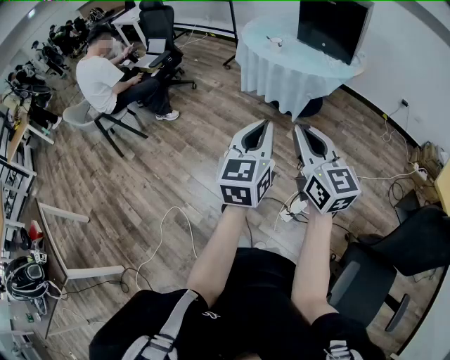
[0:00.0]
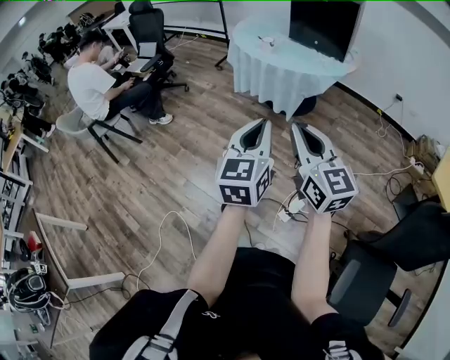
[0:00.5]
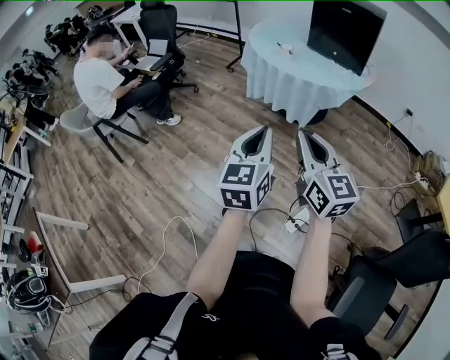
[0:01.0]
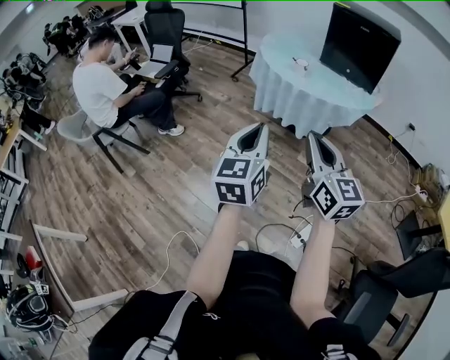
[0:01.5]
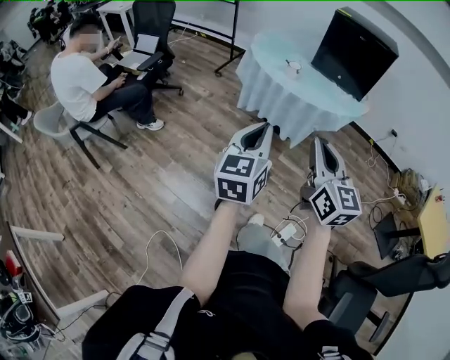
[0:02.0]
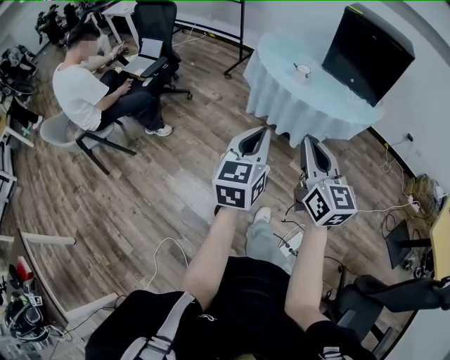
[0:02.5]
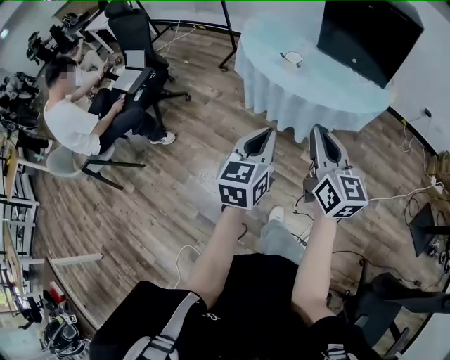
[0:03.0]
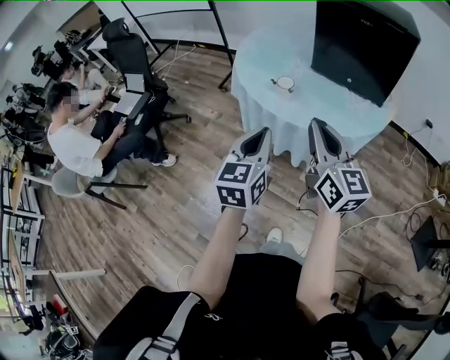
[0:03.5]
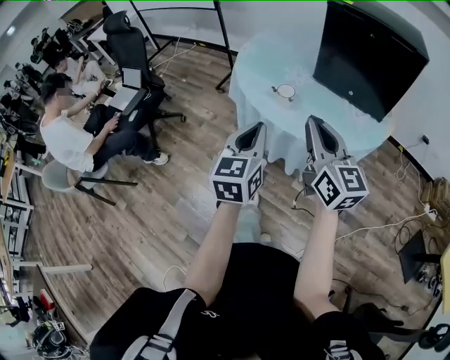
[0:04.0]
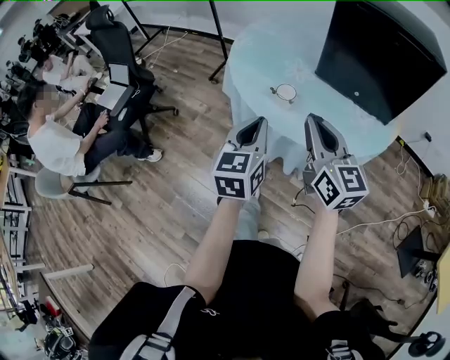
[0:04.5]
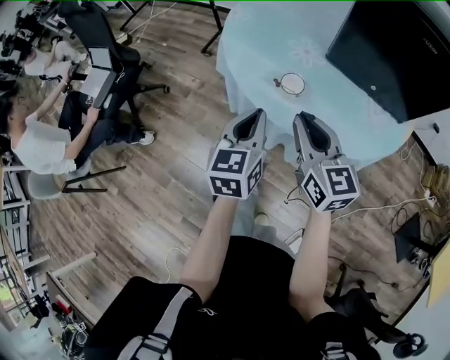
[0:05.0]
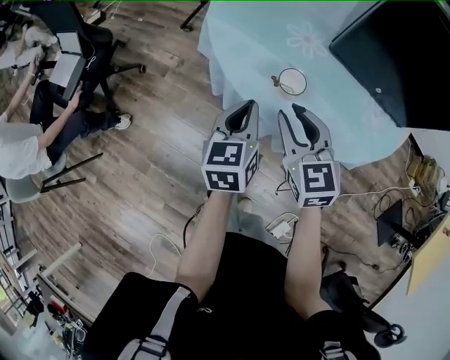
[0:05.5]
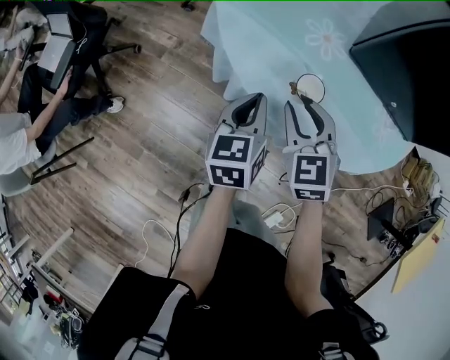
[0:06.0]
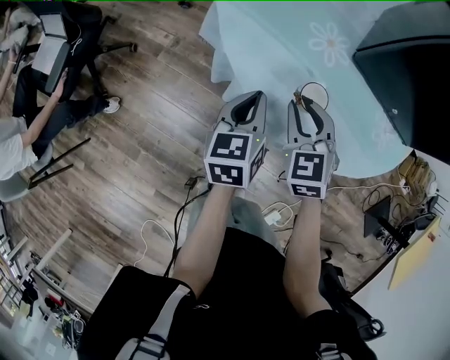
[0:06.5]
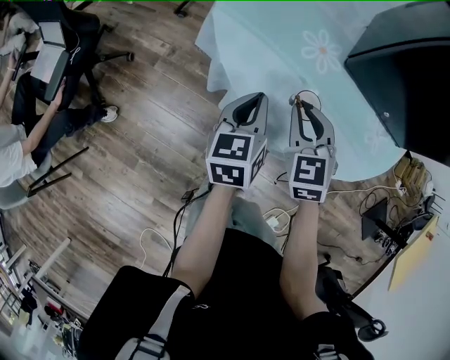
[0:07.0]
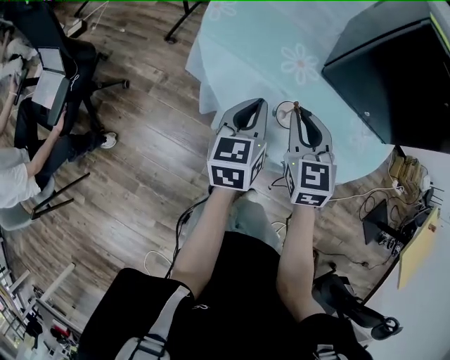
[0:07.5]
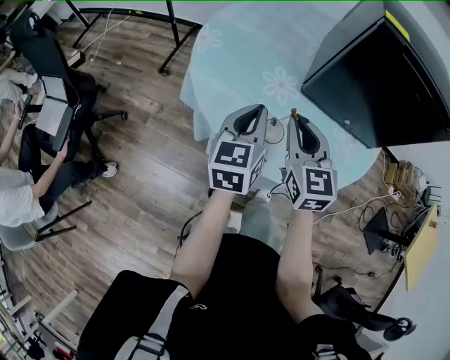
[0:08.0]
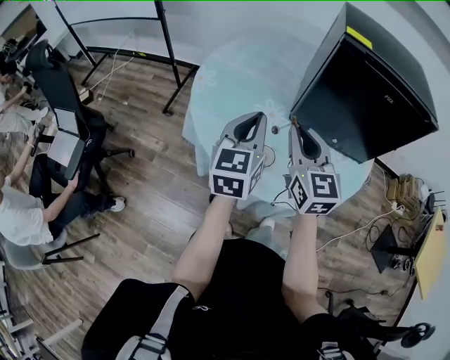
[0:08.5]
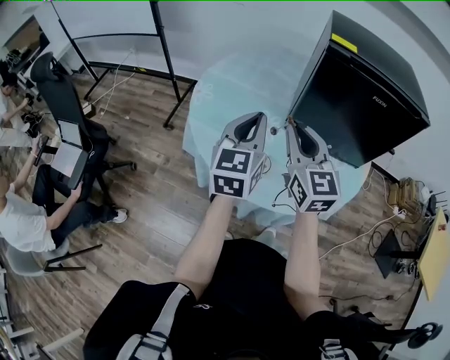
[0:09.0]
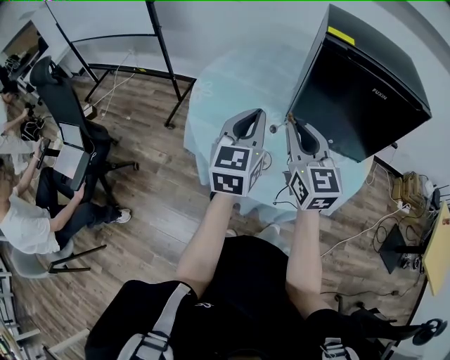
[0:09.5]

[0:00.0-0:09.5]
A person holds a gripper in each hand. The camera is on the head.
0.0 to 2.0 s: The two grippers go approximately 25 cm forward and to the left.
2.0 to 4.0 s: The two grippers go approximately 35 cm forward.
4.0 to 5.5 s: Both grippers move forward and downward, roughly 25 cm. The right gripper rotates some 30 degrees, and opens.
5.5 to 7.5 s: Both grippers move forward, about 10 cm.
7.5 to 9.5 s: The two grippers go about 15 cm upward. The left gripper changes its angle by approximately 30 degrees. Meanwhile the right gripper swivels approximately 30 degrees.

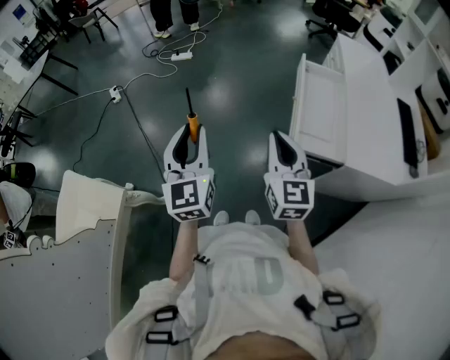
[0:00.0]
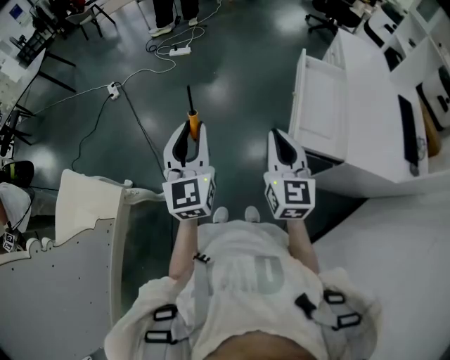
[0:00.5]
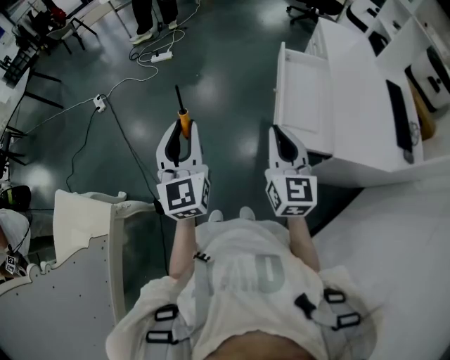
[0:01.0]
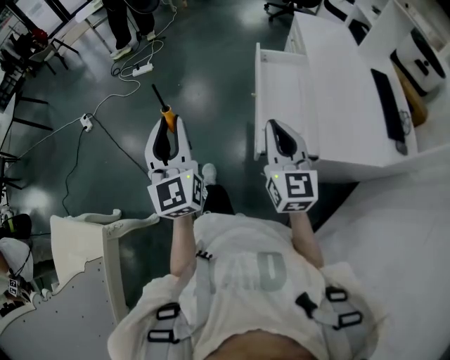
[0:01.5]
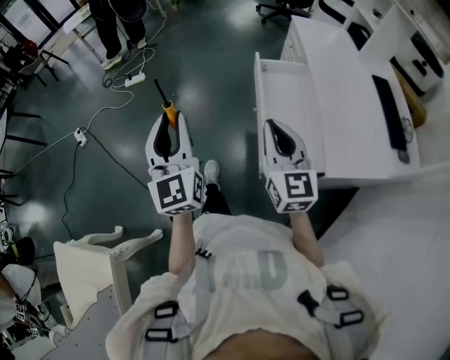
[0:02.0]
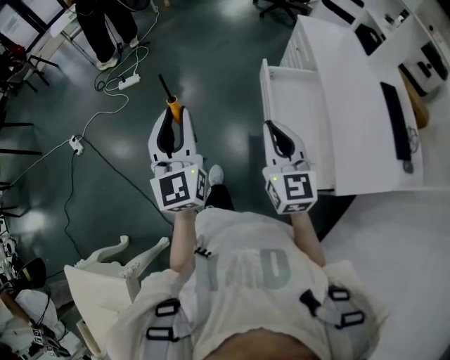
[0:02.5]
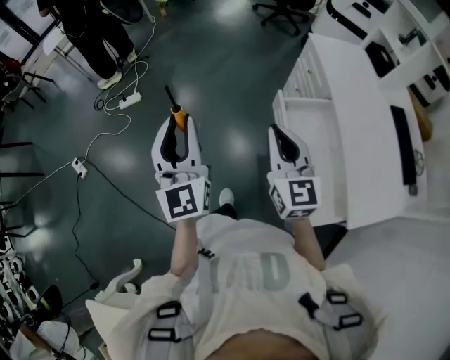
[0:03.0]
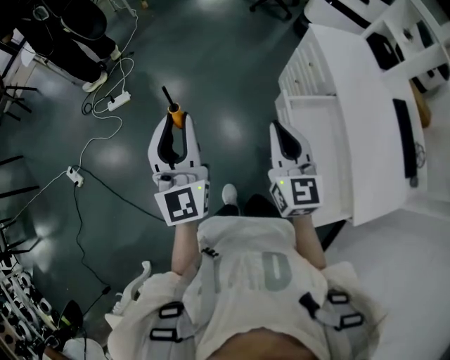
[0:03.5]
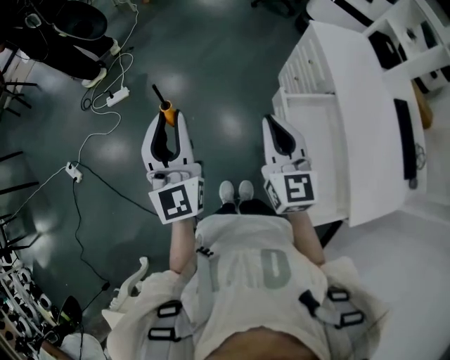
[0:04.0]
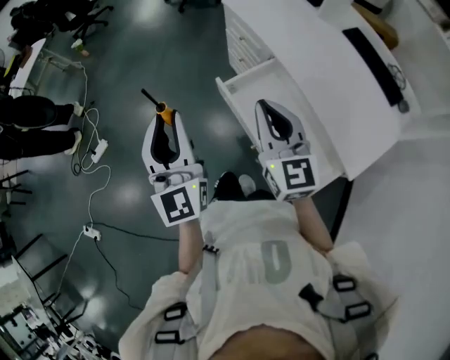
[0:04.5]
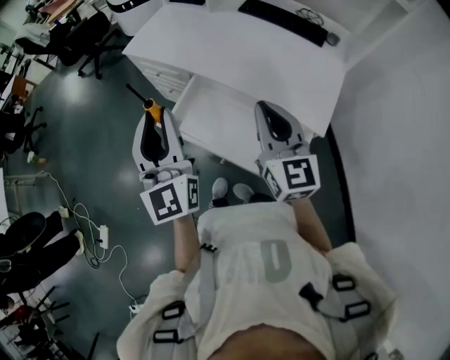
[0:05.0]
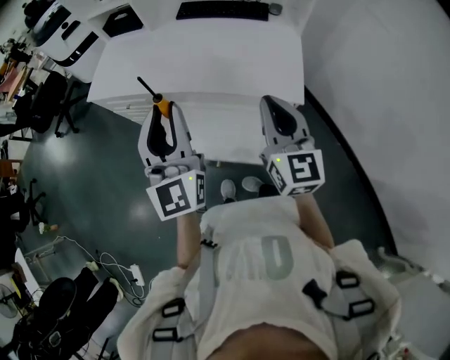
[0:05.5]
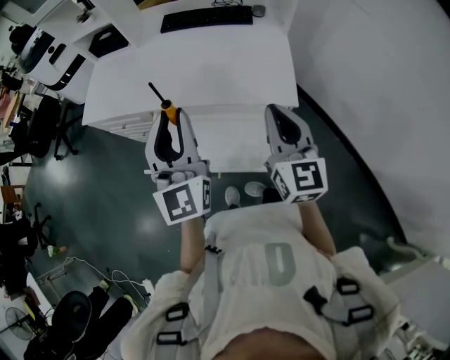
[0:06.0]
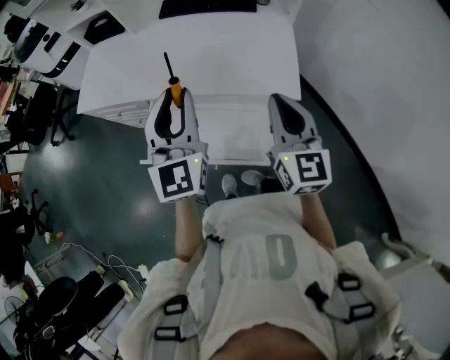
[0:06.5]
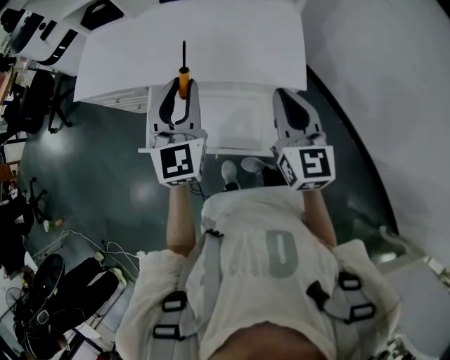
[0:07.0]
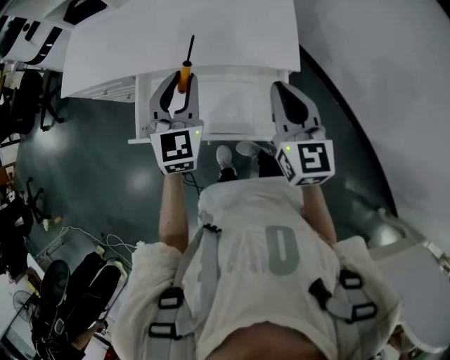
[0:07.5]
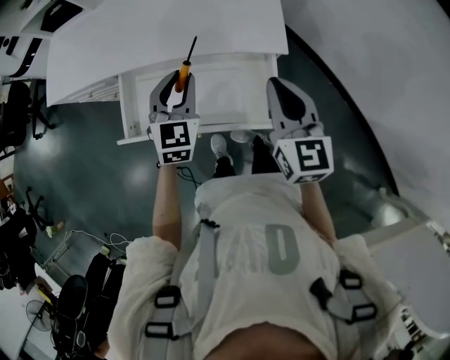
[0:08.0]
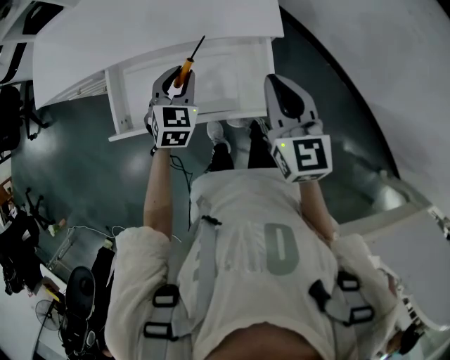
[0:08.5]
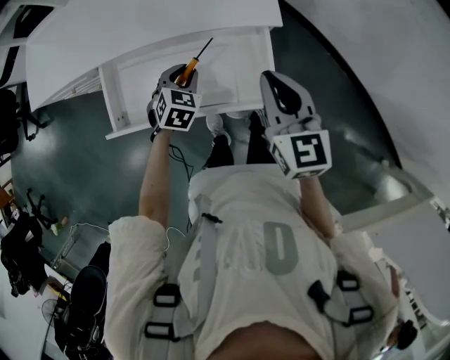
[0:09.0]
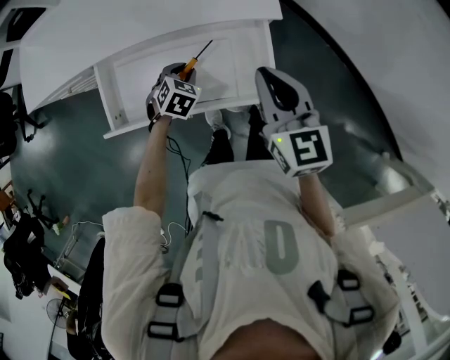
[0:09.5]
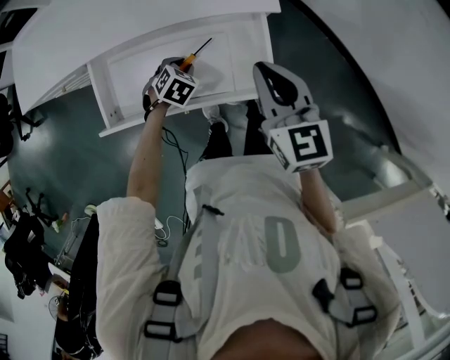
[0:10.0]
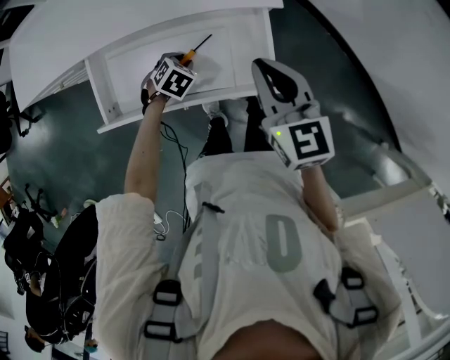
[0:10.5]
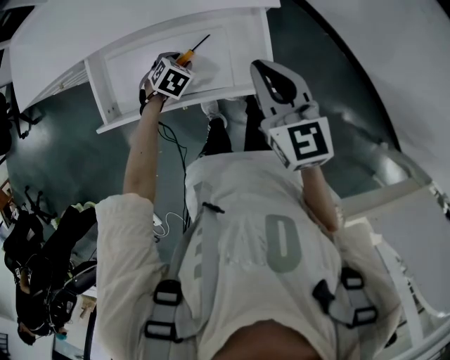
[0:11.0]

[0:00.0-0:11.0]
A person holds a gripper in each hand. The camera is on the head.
0.0 to 2.0 s: The grippers both shift forward and to the right by some 20 cm.
2.0 to 3.5 s: Both grippers move forward, about 35 cm.
3.5 to 5.5 s: The right gripper moves some 35 cm, and swivels roughly 70 degrees. Meanwhile the left gripper ends up some 40 cm from where it was, and swivels approximately 70 degrees.
5.5 to 7.5 s: The right gripper heads to the right and downward, covering about 10 cm, while the left gripper is displaced downward, to the right and forward by roughly 20 cm, and swivels approximately 30 degrees.
7.5 to 9.0 s: The left gripper shifts some 25 cm downward, and points its fingers some 40 degrees further downward. The right gripper travels downward by approximately 5 cm.
9.0 to 11.0 s: The left gripper heads downward, covering roughly 10 cm, and swivels about 20 degrees.

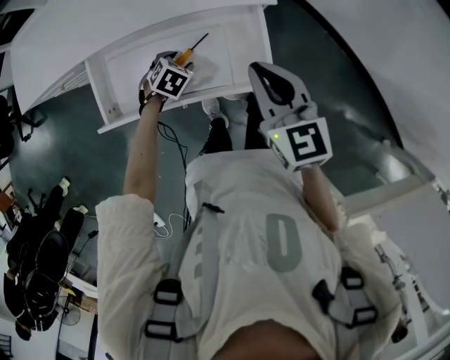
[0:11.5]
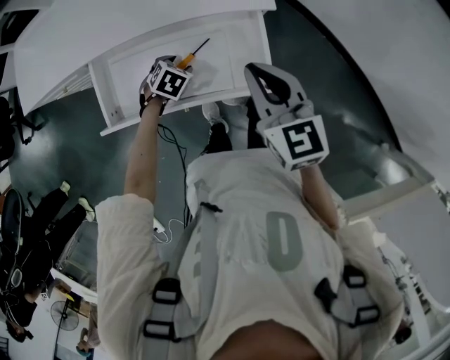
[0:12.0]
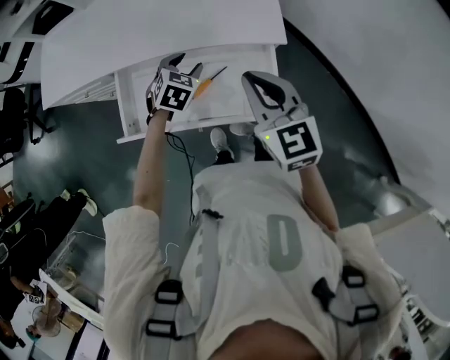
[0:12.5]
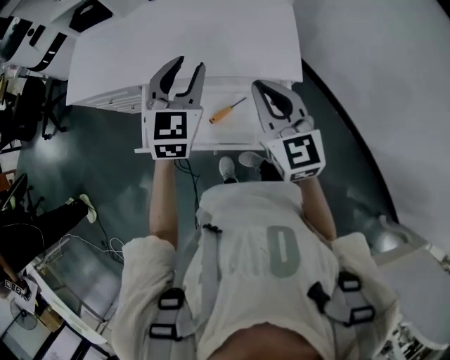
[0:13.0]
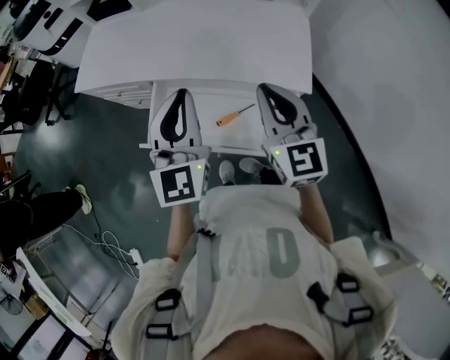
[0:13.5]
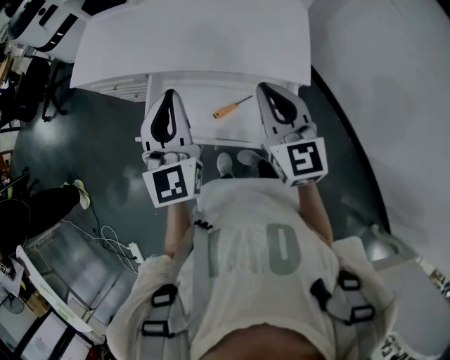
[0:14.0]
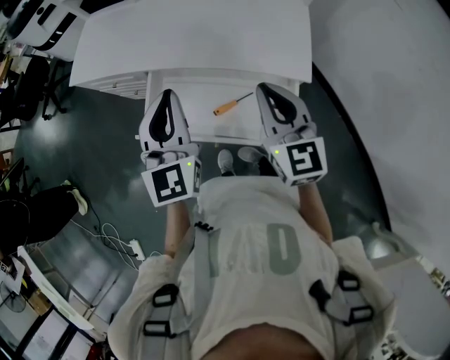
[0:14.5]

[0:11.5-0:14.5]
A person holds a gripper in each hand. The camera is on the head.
11.5 to 13.0 s: The right gripper shifts some 15 cm upward, to the left and forward, while the left gripper moves upward, approximately 35 cm, and tilts its fingers approximately 50 degrees upward.
13.0 to 14.5 s: The left gripper heads backward and to the left, covering approximately 10 cm, turns by about 30 degrees, and closes up.

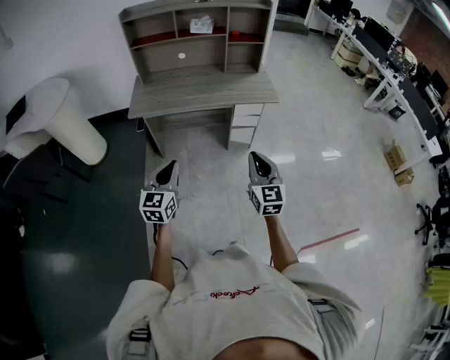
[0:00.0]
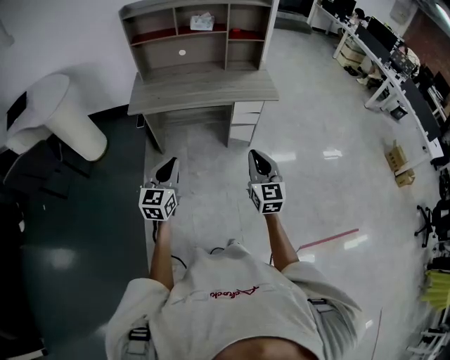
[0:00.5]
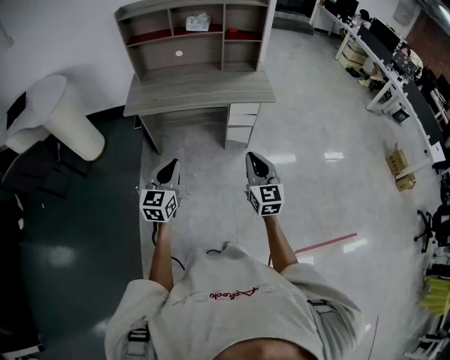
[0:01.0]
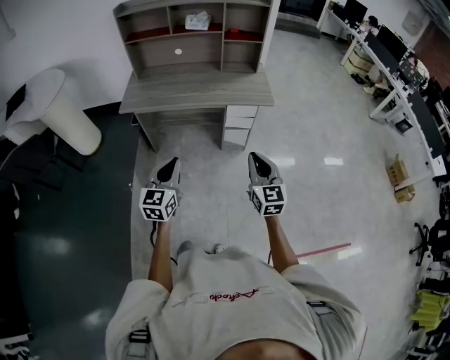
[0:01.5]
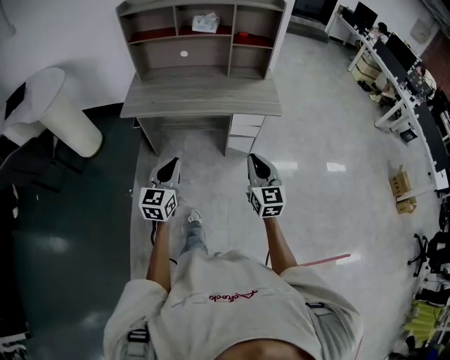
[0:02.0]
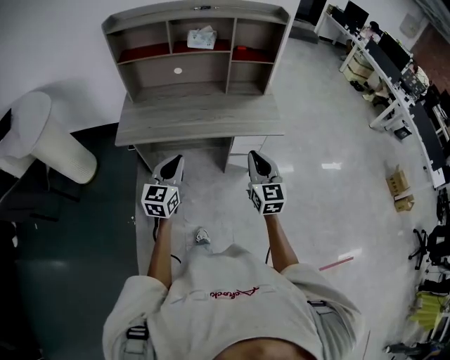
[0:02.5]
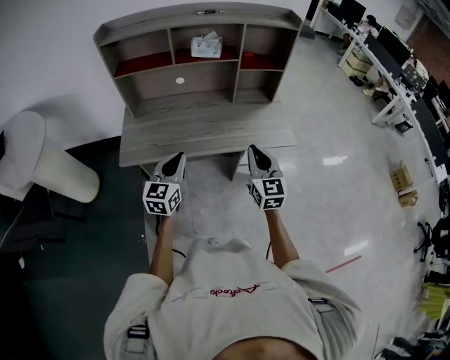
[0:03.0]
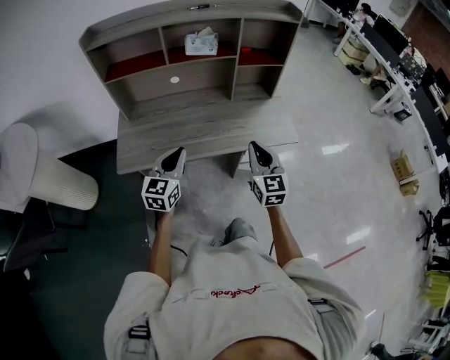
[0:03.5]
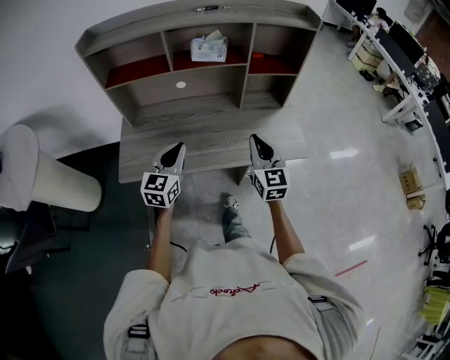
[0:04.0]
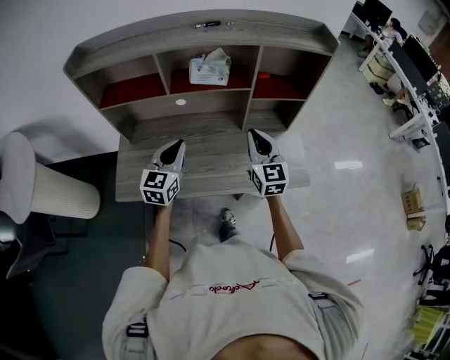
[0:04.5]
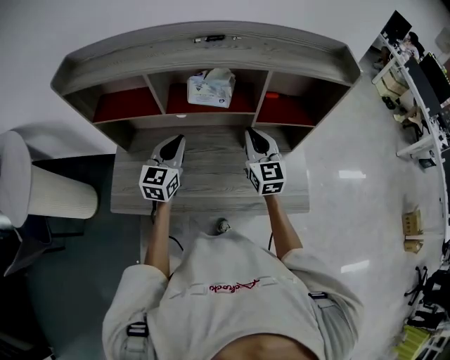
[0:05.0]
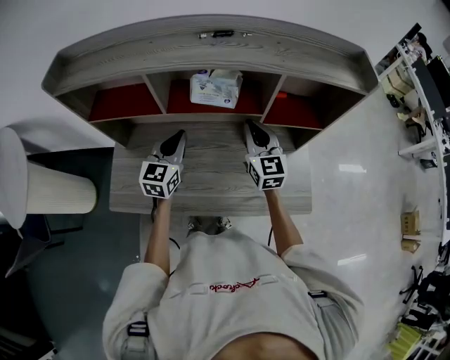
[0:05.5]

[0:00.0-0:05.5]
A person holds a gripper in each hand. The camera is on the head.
0.0 to 2.0 s: Both grippers move forward and to the right, approximately 15 cm.
2.0 to 3.5 s: The left gripper goes roughly 35 cm forward, while the right gripper goes about 30 cm forward and to the left.
3.5 to 5.5 s: Both grippers move forward, approximately 40 cm.
